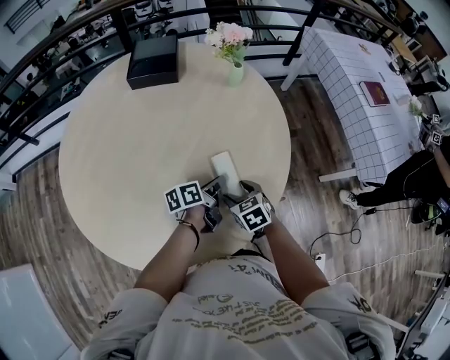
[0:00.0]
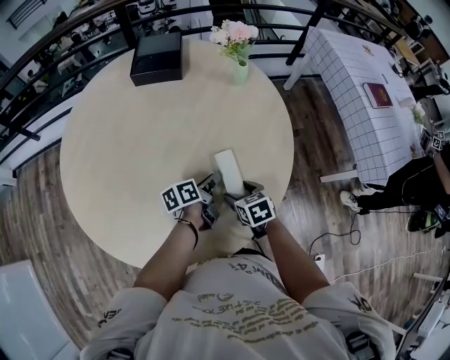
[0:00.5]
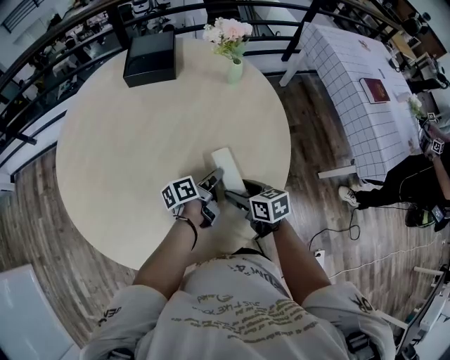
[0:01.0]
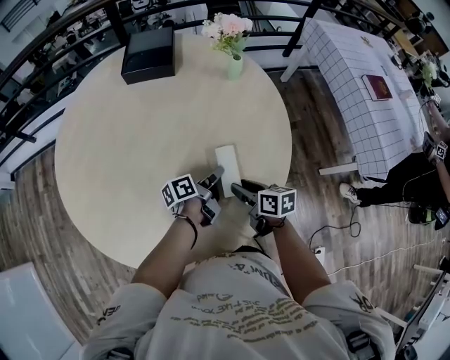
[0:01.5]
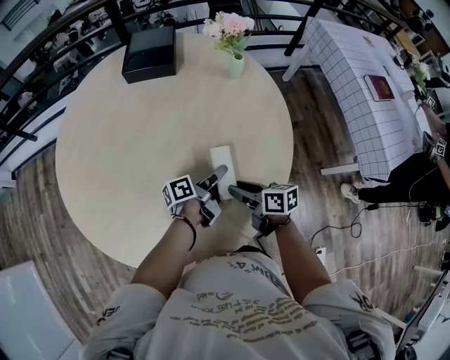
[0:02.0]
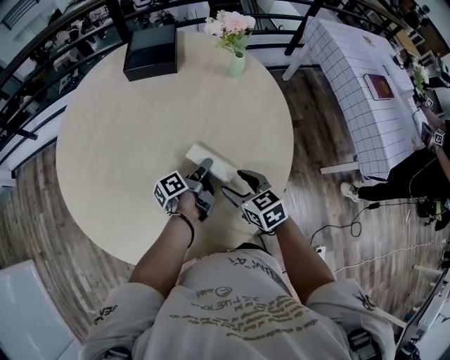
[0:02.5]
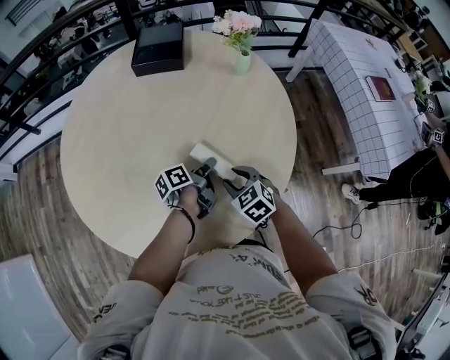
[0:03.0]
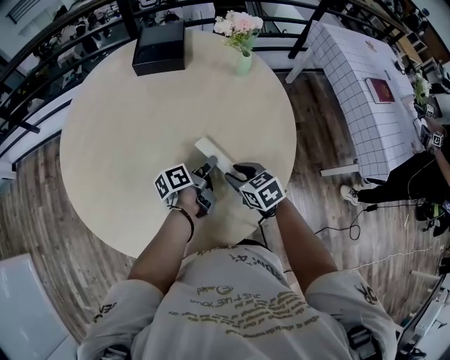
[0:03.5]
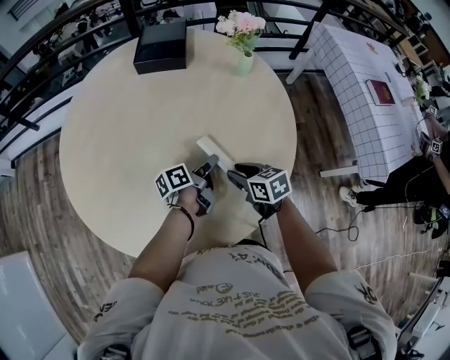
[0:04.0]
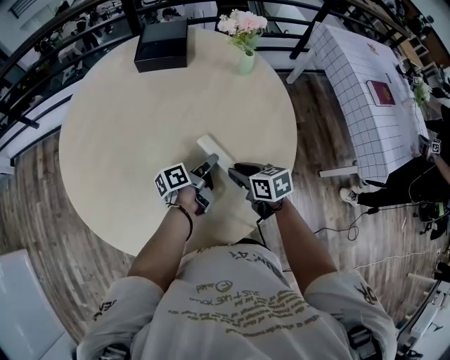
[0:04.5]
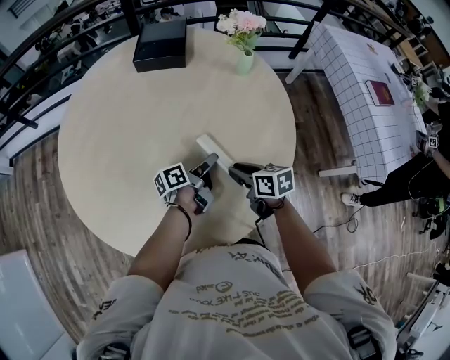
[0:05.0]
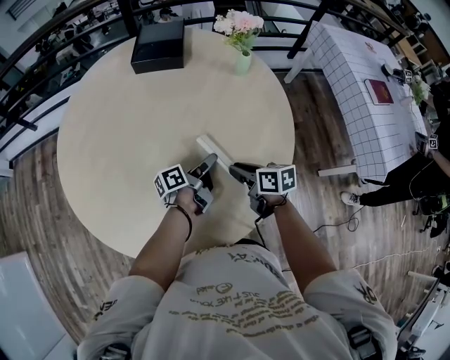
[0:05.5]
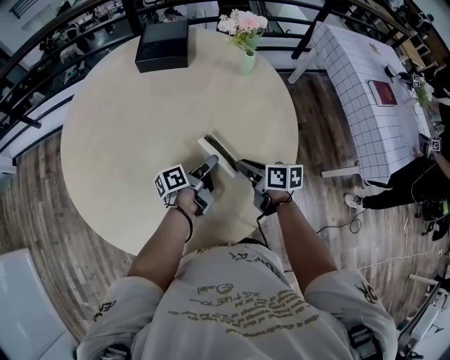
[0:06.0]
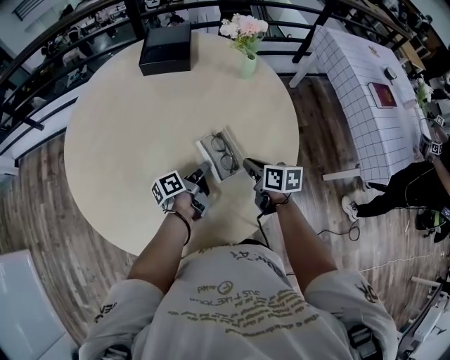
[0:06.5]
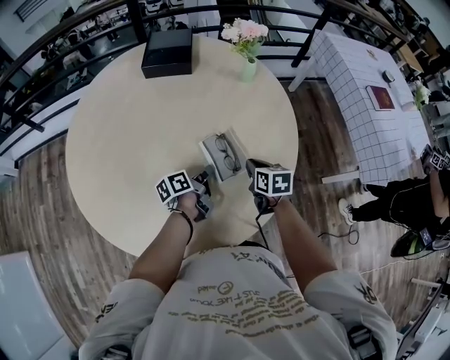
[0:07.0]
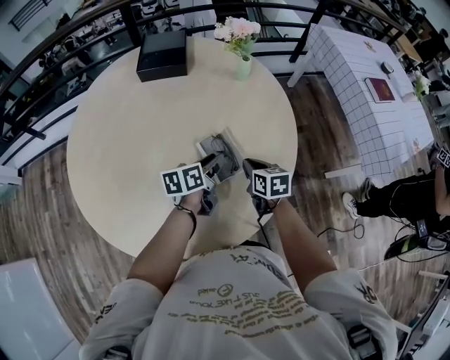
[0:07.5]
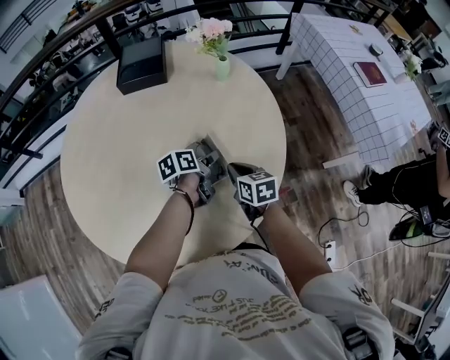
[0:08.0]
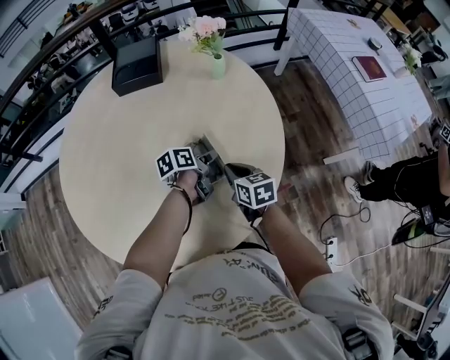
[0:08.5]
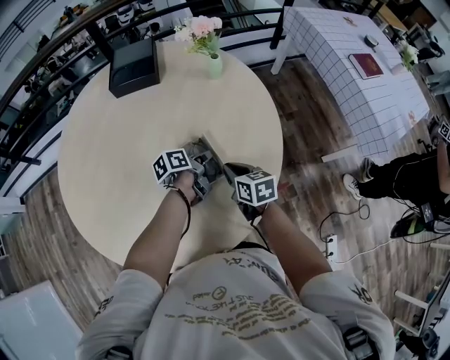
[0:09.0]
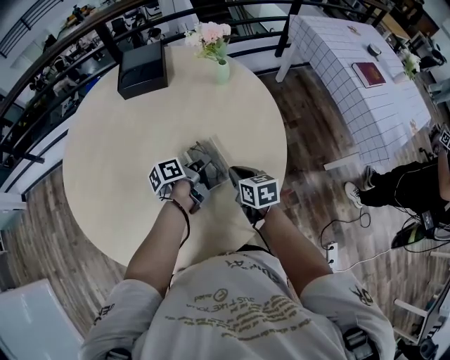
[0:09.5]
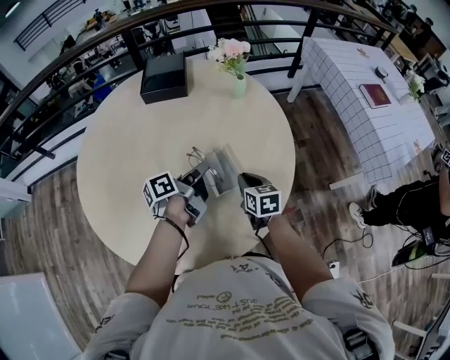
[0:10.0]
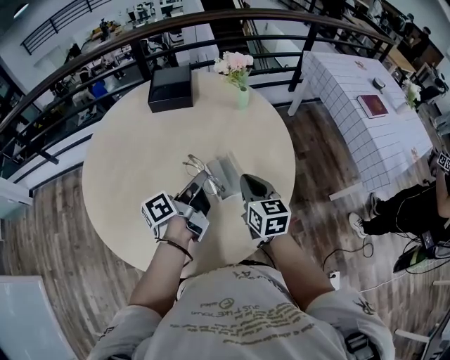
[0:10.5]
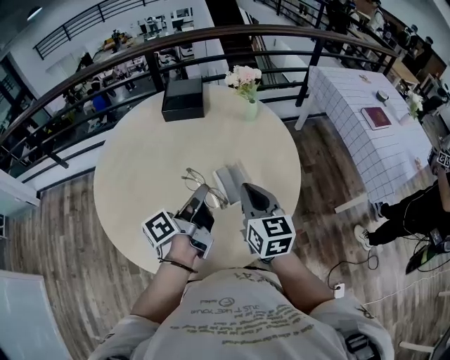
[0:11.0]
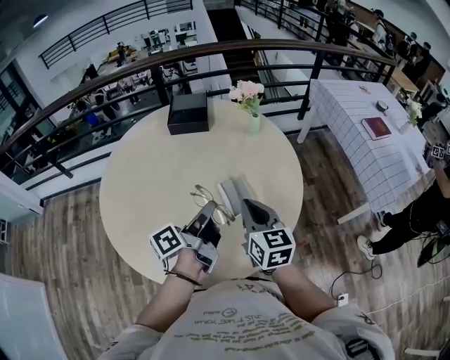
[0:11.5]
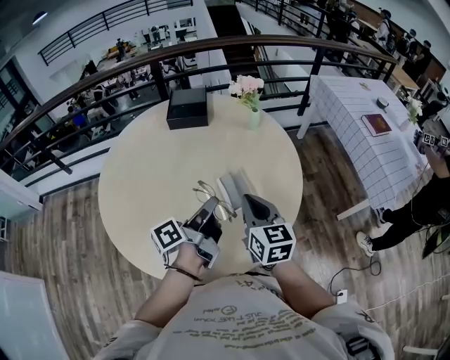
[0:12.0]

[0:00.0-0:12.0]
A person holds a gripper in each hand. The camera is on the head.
0:00.0 to 0:02.0: The right gripper changes its angle by about 50 degrees, while the left gripper opens up.
0:02.0 to 0:04.0: The right gripper turns by about 30 degrees.
0:04.0 to 0:06.0: The right gripper changes its angle by roughly 30 degrees.
0:06.0 to 0:08.0: The left gripper moves about 5 cm, rotates approximately 30 degrees, and closes and opens again. The right gripper swivels approximately 20 degrees.
0:08.0 to 0:10.0: The left gripper goes roughly 10 cm upward and to the left, turns by some 30 degrees, and closes.
0:10.0 to 0:12.0: The right gripper goes roughly 20 cm upward, and changes its angle by about 20 degrees; the left gripper shifts some 15 cm upward and backward.

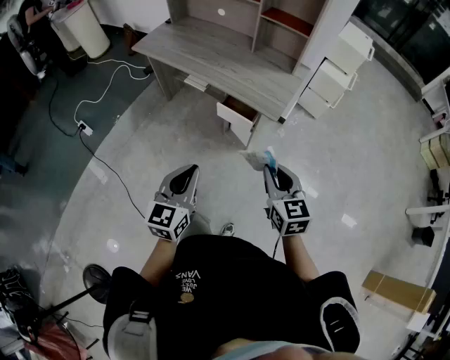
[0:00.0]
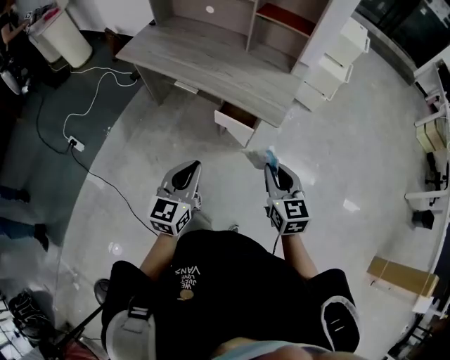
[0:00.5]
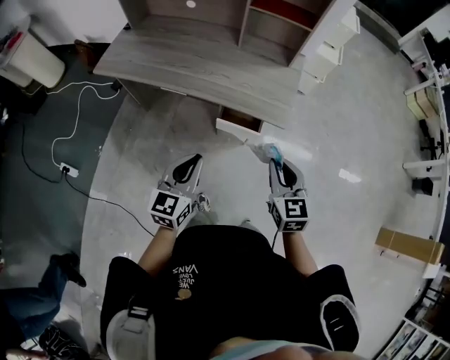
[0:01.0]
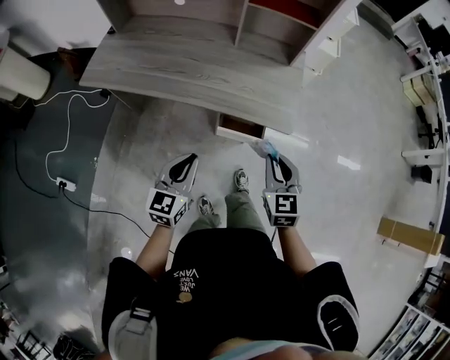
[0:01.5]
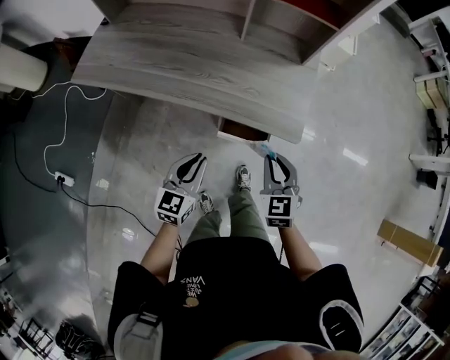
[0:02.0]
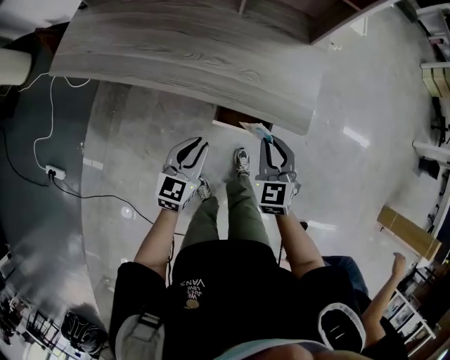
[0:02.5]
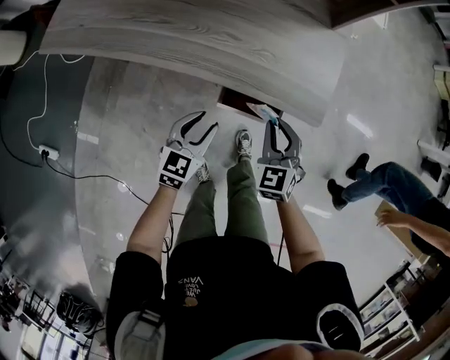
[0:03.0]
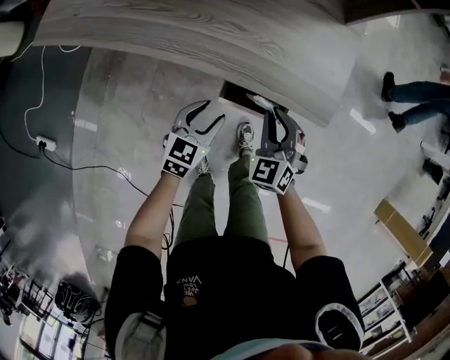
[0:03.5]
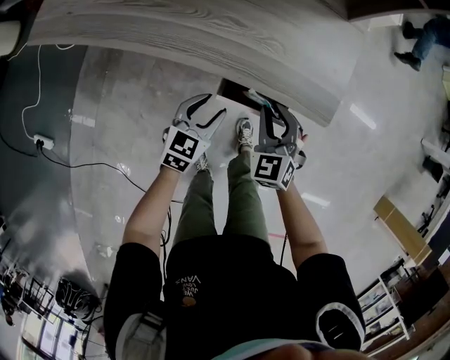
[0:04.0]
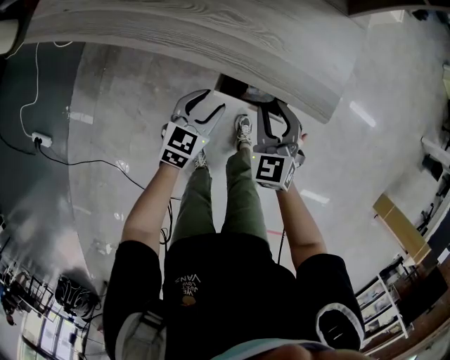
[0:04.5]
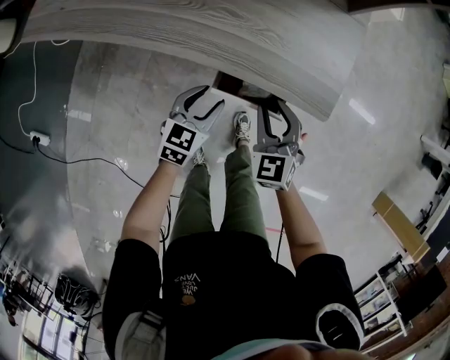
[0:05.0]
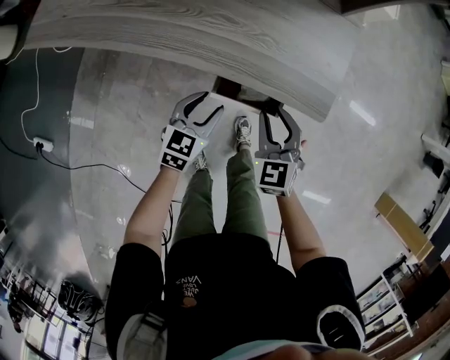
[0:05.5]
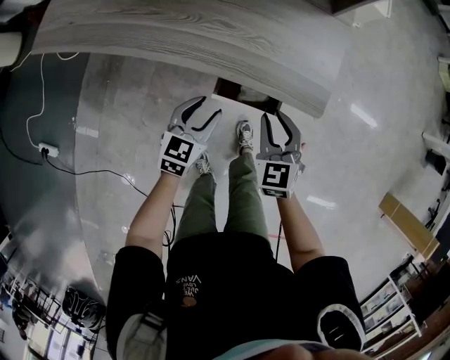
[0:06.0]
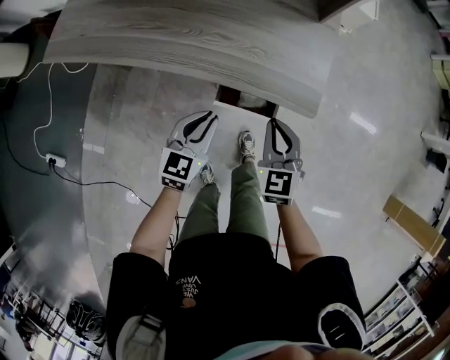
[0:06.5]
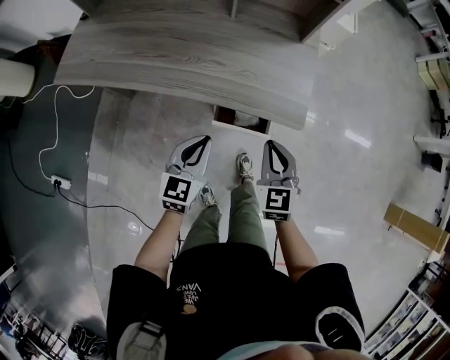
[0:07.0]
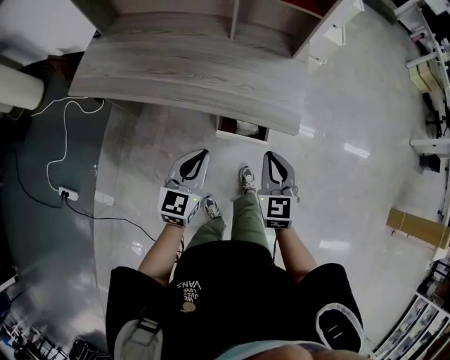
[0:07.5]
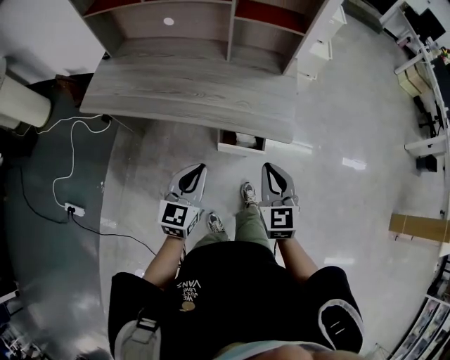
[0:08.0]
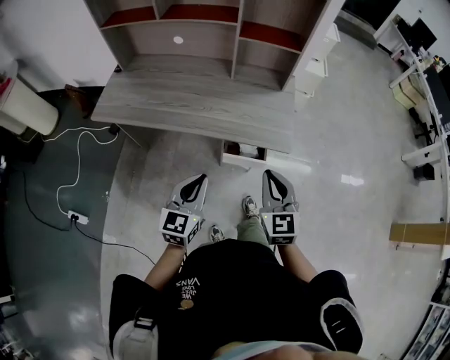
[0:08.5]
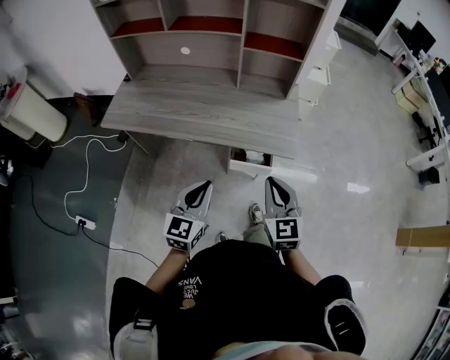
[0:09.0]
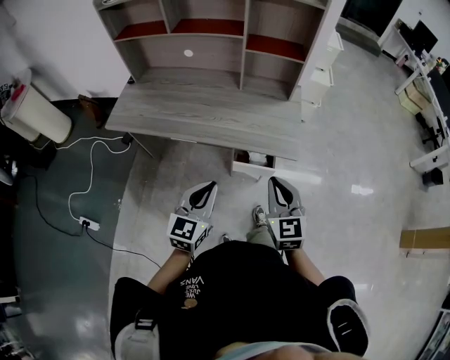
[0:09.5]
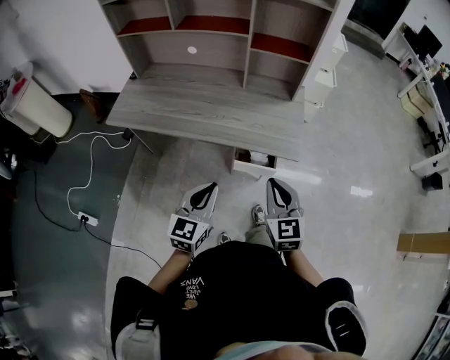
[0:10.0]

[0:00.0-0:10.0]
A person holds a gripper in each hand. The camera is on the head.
0:00.0 to 0:02.0: The left gripper moves forward, downward and to the left, some 35 cm, and changes its angle by about 30 degrees; the right gripper moves forward, to the left and downward, some 30 cm, and changes its angle by some 30 degrees.
0:02.0 to 0:04.0: The two grippers go some 15 cm downward and forward. The left gripper opens its fingers.
0:04.0 to 0:06.0: The grippers move only a little.
0:06.0 to 0:08.0: Both grippers travel together upward and backward, some 20 cm. The left gripper closes up; the right gripper closes its fingers.
0:08.0 to 0:10.0: The left gripper heads upward, covering some 5 cm. Meanwhile the right gripper shifts by approximately 5 cm.

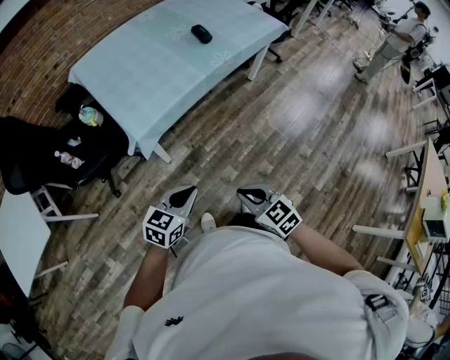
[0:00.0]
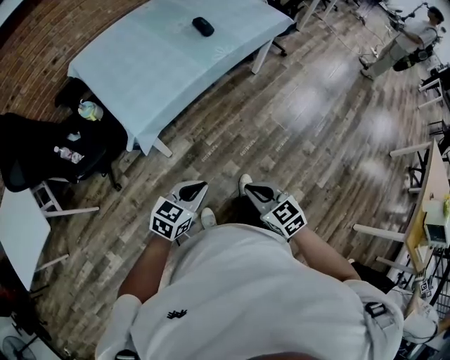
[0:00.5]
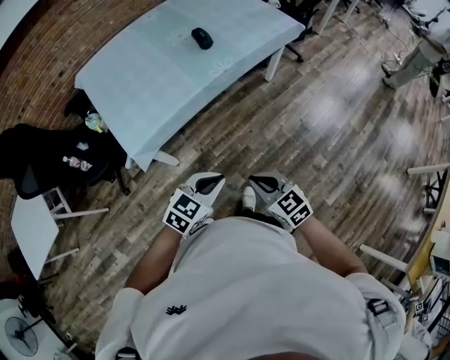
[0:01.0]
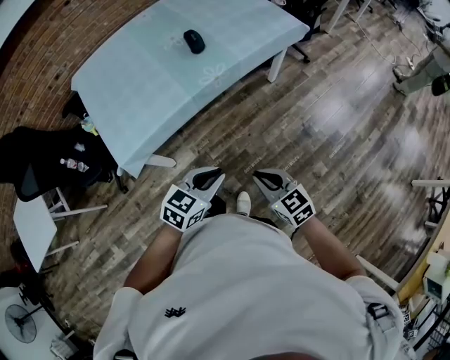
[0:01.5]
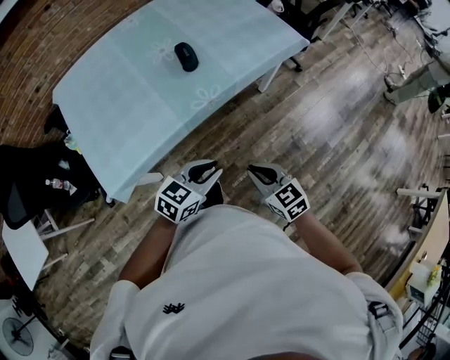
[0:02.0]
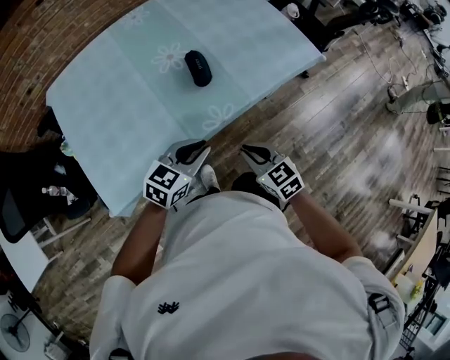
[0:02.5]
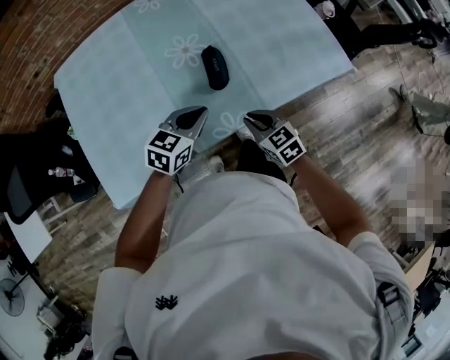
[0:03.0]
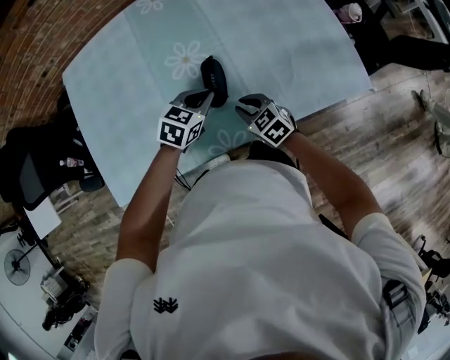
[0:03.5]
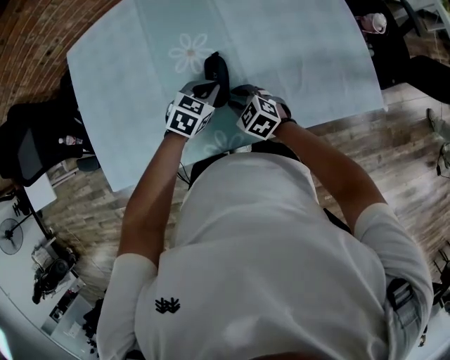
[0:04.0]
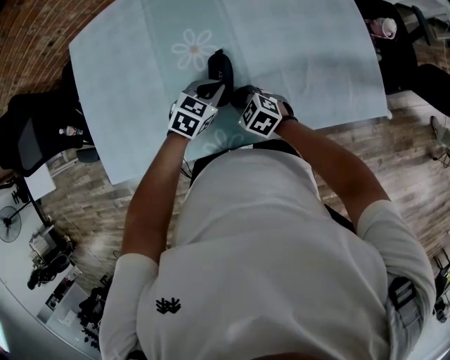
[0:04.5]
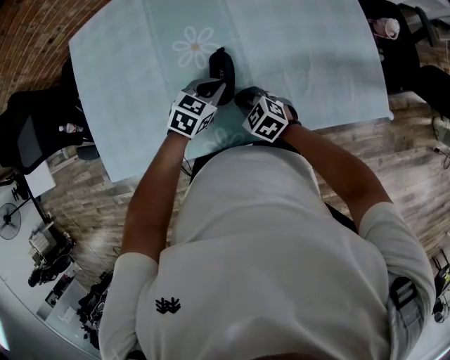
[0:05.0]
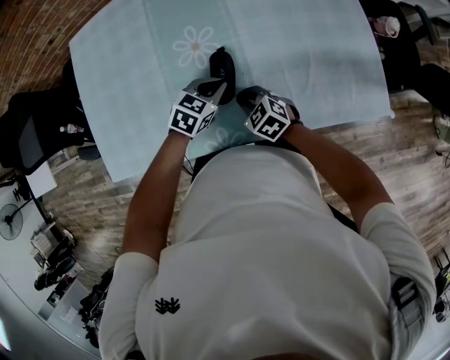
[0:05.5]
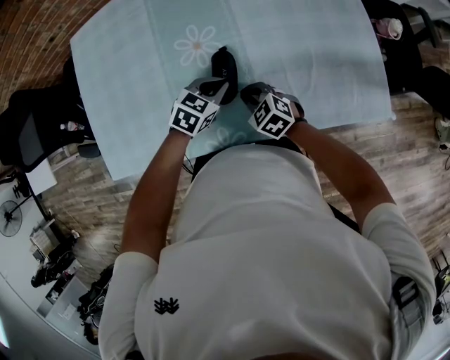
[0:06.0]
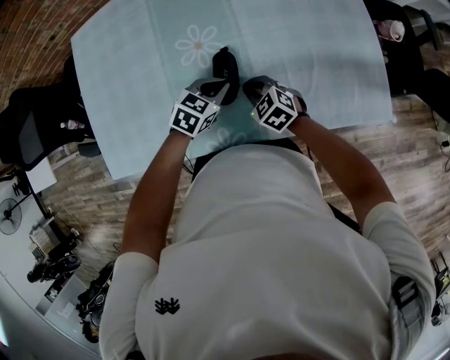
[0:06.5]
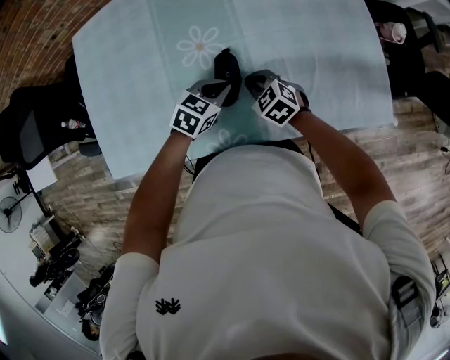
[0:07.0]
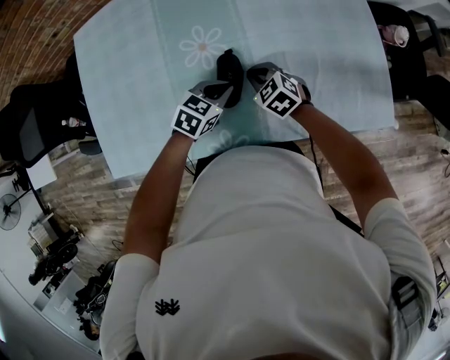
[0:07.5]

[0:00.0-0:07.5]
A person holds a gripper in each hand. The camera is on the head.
0:00.0 to 0:02.0: The two grippers travel together, forward and to the right, approximately 40 cm.
0:02.0 to 0:04.0: Both grippers are carried about 50 cm. The right gripper swivels some 40 degrees. The left gripper turns by about 40 degrees.
0:04.0 to 0:05.5: There are only small adjustments of the grippers.
0:05.5 to 0:07.5: The right gripper goes roughly 10 cm forward.
